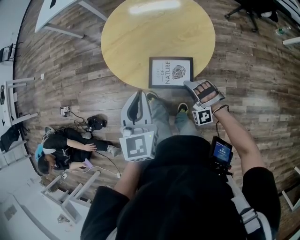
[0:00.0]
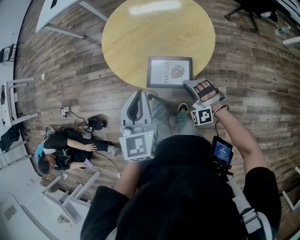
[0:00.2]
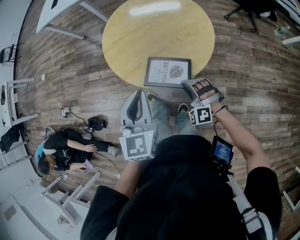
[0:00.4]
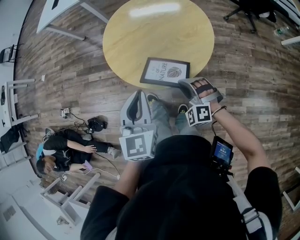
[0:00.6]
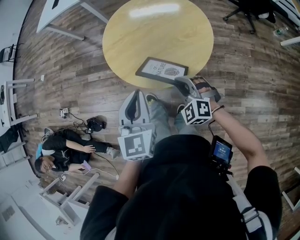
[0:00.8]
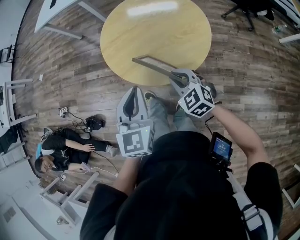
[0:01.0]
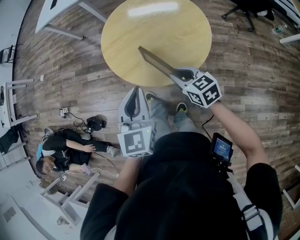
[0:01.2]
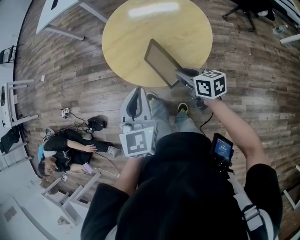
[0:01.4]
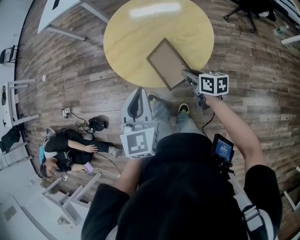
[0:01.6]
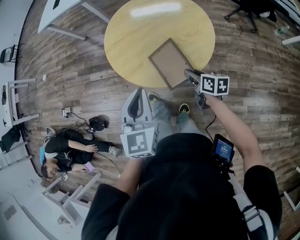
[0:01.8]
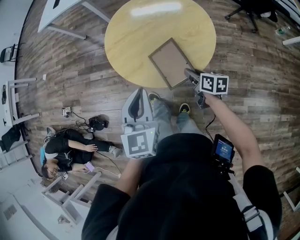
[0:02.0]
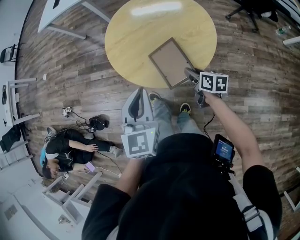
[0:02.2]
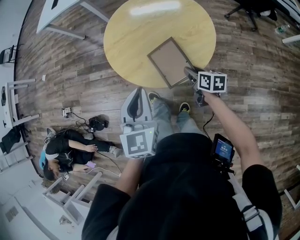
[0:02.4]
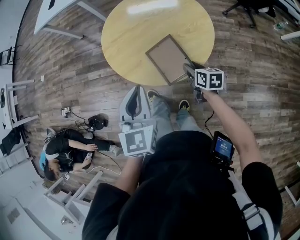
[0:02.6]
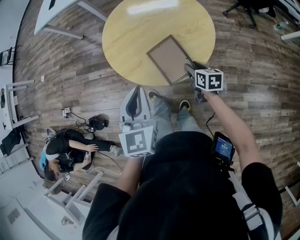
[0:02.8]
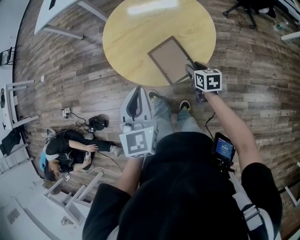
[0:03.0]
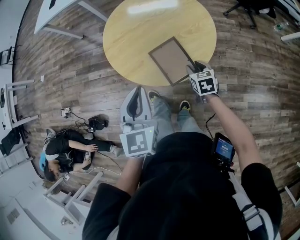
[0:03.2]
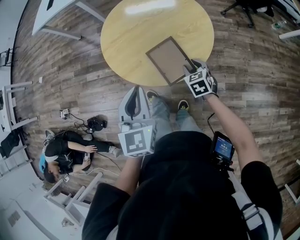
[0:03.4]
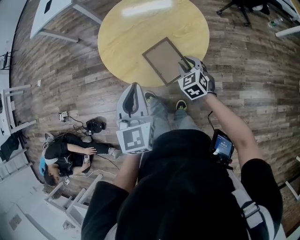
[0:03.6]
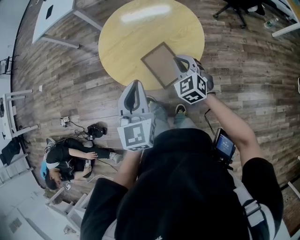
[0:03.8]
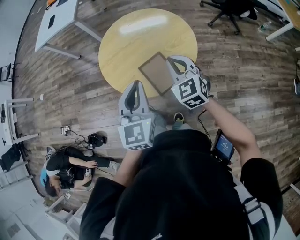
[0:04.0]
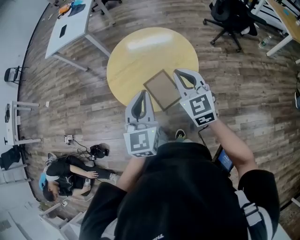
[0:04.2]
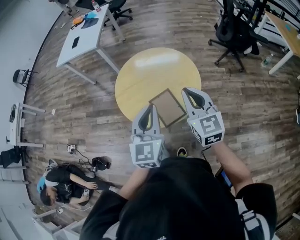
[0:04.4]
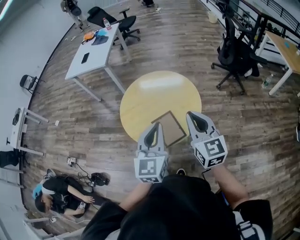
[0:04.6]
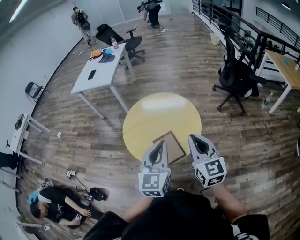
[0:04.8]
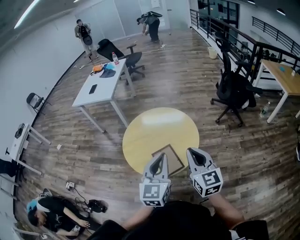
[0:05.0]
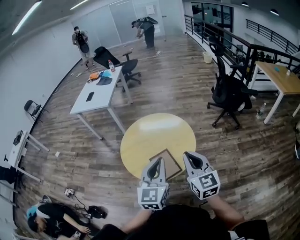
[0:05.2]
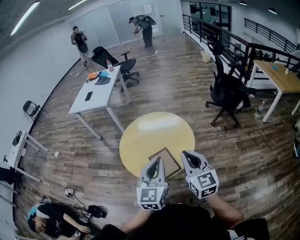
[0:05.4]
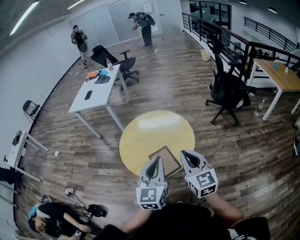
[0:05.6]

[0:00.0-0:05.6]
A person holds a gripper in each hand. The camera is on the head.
0.0 to 1.4 s: The right gripper goes approximately 10 cm upward and forward, and rotates around the line of its fingers by roughly 110 degrees, clockwise from behind.
1.4 to 2.8 s: The right gripper travels downward and to the right by approximately 10 cm, rotates roughly 20 degrees, and opens its fingers.
2.8 to 4.2 s: The left gripper goes roughly 10 cm upward and to the right. Meanwhile the right gripper travels upward by approximately 30 cm, rotates around the line of its fingers by approximately 40 degrees, counterclockwise from behind, and closes.
4.2 to 5.6 s: The right gripper moves backward and upward, about 10 cm. The left gripper shifts about 5 cm upward.

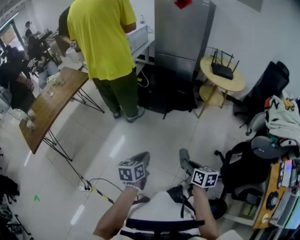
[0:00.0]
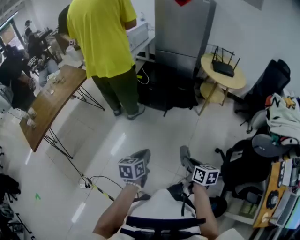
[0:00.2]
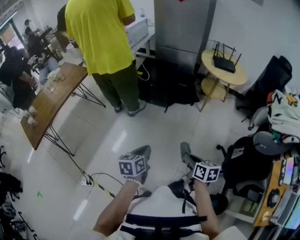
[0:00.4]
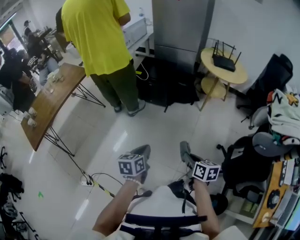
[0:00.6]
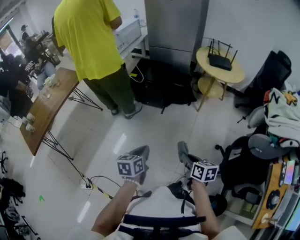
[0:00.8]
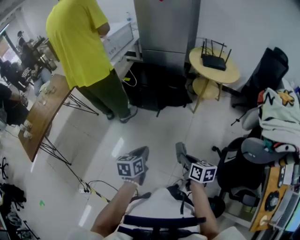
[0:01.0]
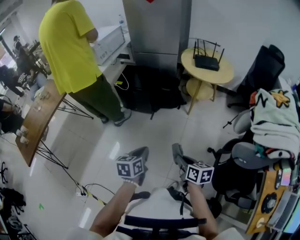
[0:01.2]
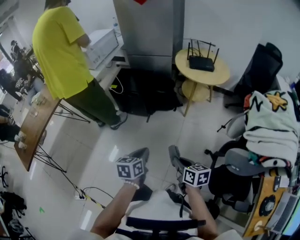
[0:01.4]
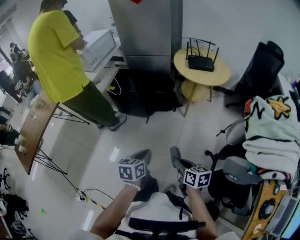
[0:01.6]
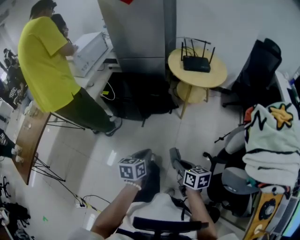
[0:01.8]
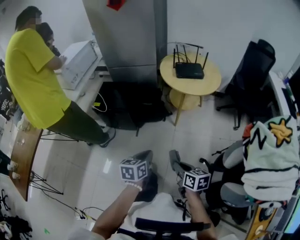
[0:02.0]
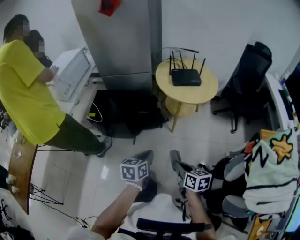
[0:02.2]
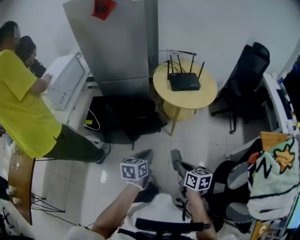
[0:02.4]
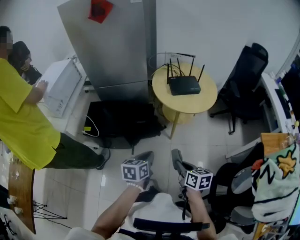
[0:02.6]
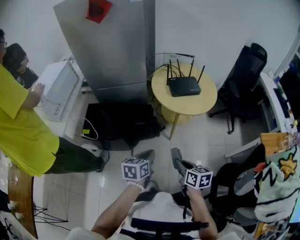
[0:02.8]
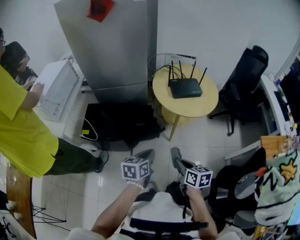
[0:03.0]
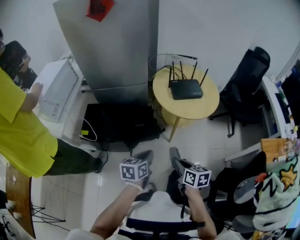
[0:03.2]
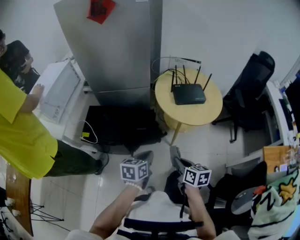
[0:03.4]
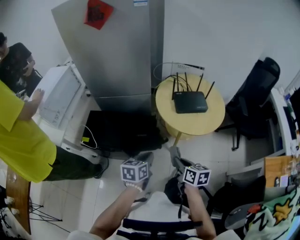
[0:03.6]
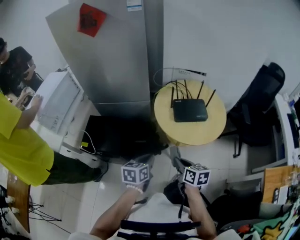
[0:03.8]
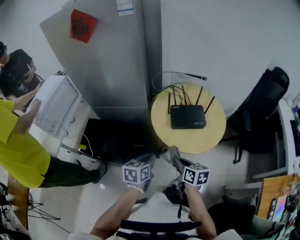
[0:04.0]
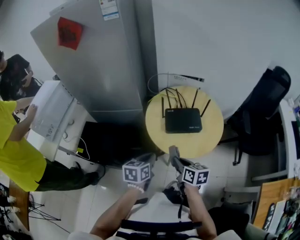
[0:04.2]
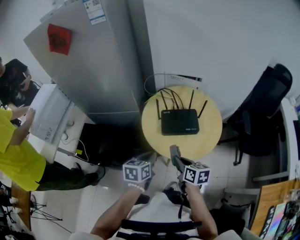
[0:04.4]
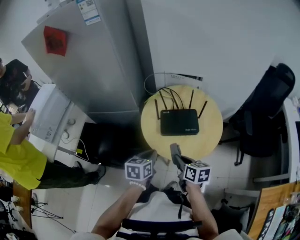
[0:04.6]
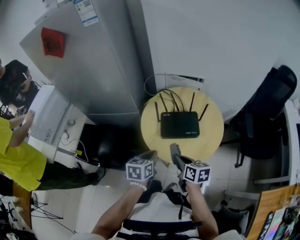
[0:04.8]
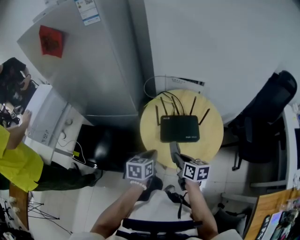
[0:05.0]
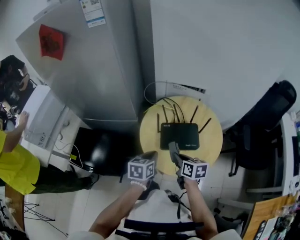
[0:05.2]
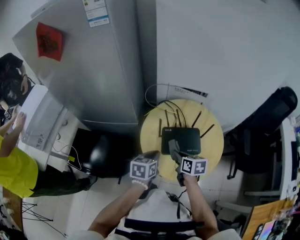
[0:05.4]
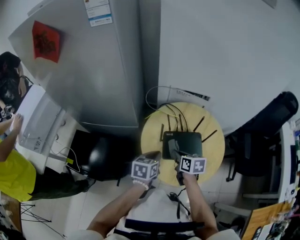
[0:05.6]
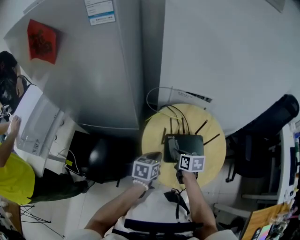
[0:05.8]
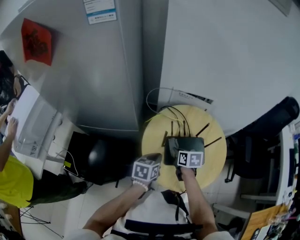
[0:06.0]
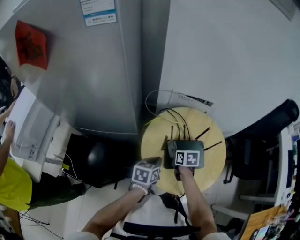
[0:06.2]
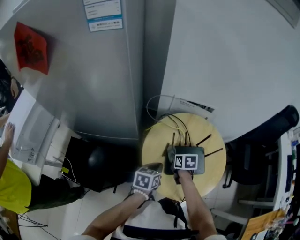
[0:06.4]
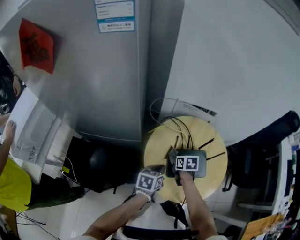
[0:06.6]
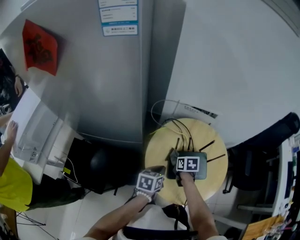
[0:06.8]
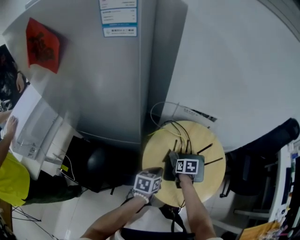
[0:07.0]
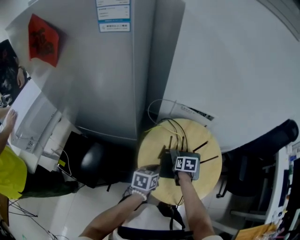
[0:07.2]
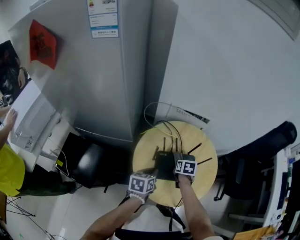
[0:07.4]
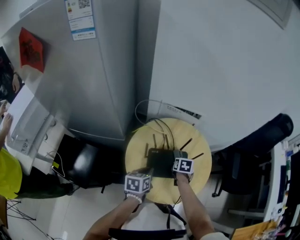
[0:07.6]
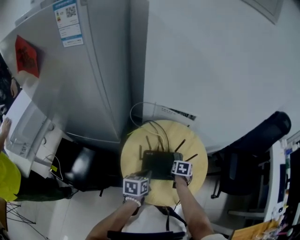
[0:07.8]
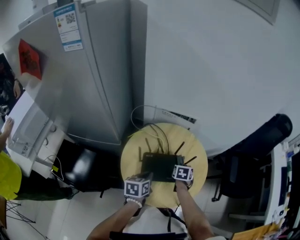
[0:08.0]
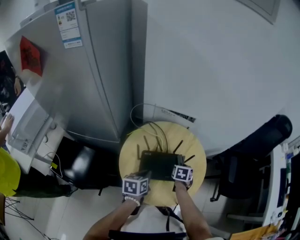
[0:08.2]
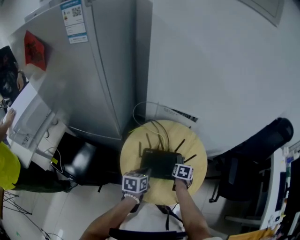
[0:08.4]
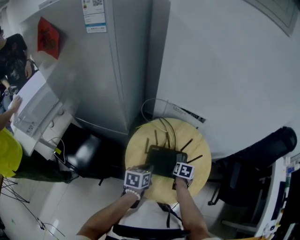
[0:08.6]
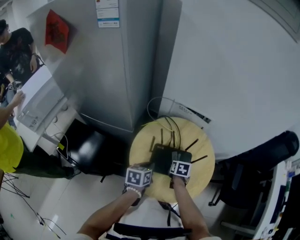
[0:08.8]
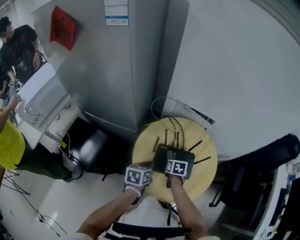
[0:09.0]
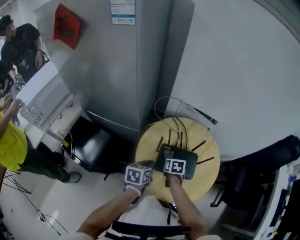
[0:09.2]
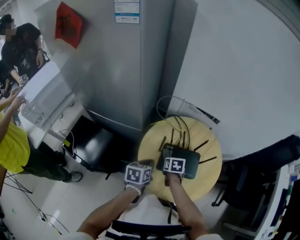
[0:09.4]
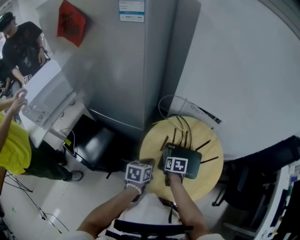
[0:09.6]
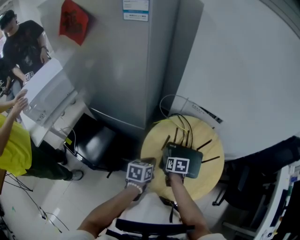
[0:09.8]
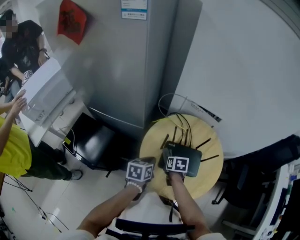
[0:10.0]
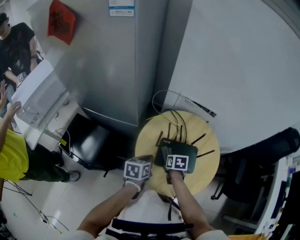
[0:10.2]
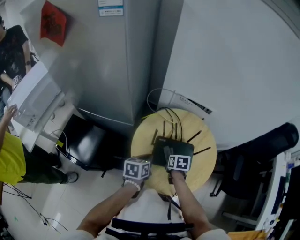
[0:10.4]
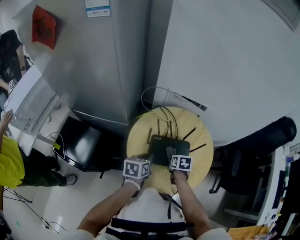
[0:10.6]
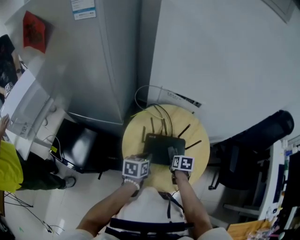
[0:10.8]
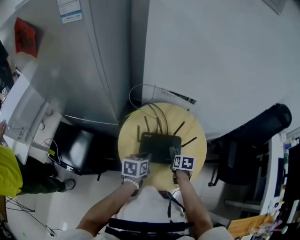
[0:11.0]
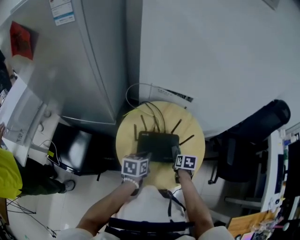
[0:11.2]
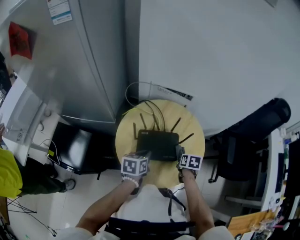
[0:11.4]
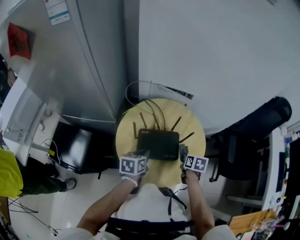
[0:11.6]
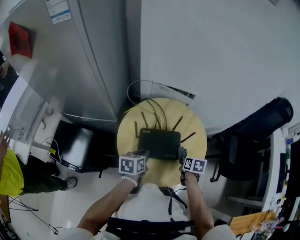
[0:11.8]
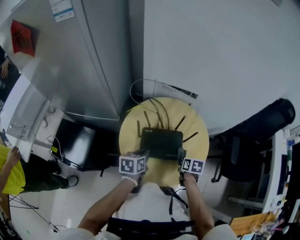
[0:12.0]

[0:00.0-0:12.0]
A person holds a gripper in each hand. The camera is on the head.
0.0 to 1.6 s: The grippers both shift to the right and forward by about 25 cm.
1.6 to 3.0 s: The grippers both shift forward by approximately 35 cm.
3.0 to 4.4 s: The two grippers go approximately 35 cm forward and to the right.
4.4 to 6.0 s: The grippers both shift forward by approximately 25 cm.
6.0 to 7.6 s: The left gripper shifts roughly 5 cm to the right, while the right gripper is displaced to the right by roughly 15 cm, and changes its angle by about 20 degrees.
7.6 to 9.0 s: The right gripper heads to the left and backward, covering about 10 cm.
9.0 to 10.4 s: The right gripper goes to the left and returns, some 10 cm each way.
10.4 to 12.0 s: The right gripper shifts about 15 cm to the right. The left gripper travels to the right by some 5 cm.

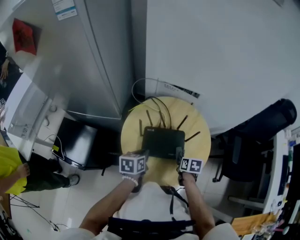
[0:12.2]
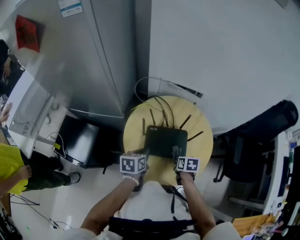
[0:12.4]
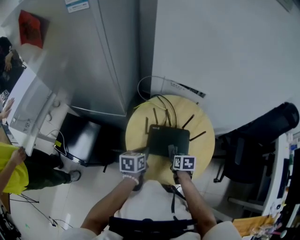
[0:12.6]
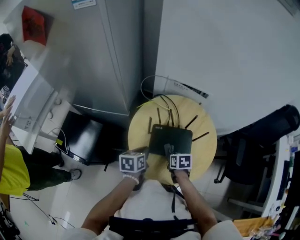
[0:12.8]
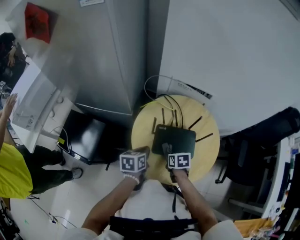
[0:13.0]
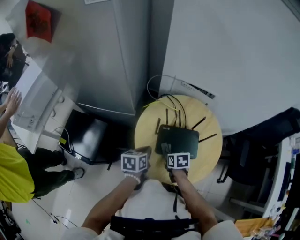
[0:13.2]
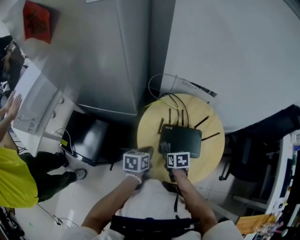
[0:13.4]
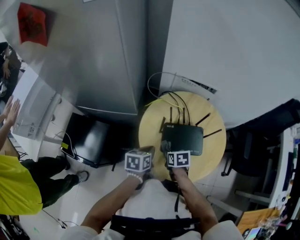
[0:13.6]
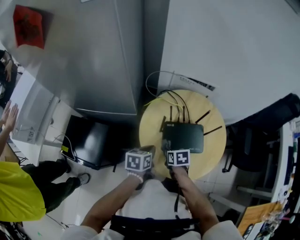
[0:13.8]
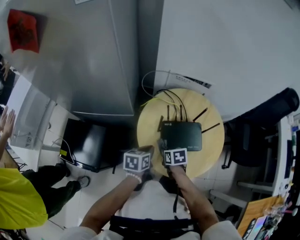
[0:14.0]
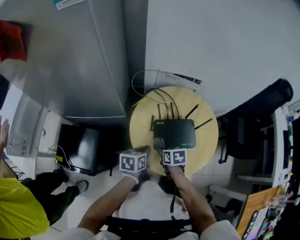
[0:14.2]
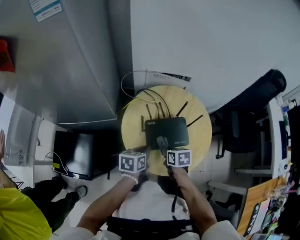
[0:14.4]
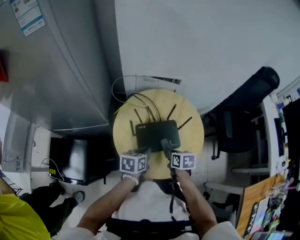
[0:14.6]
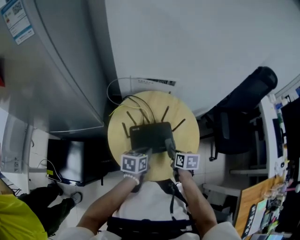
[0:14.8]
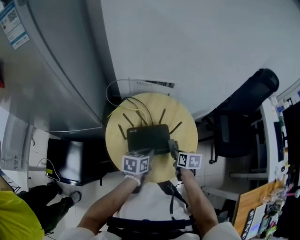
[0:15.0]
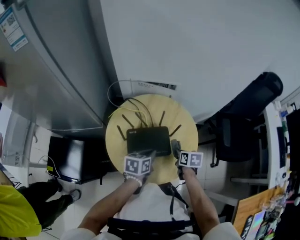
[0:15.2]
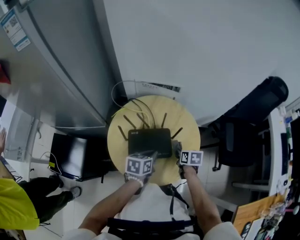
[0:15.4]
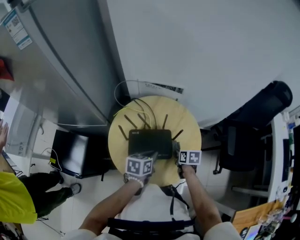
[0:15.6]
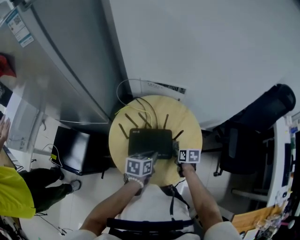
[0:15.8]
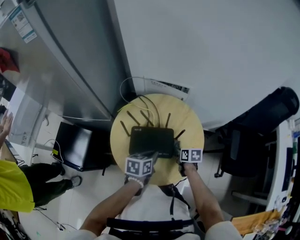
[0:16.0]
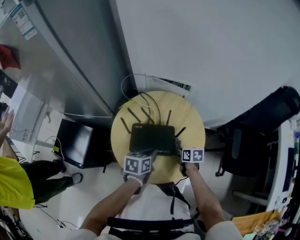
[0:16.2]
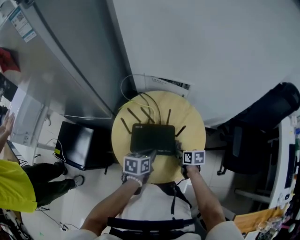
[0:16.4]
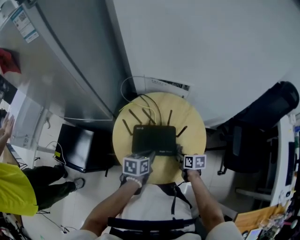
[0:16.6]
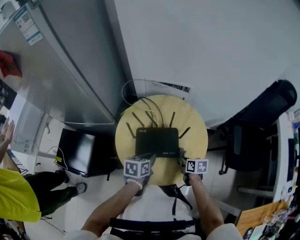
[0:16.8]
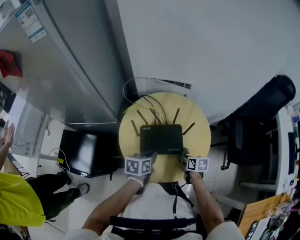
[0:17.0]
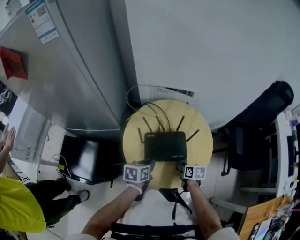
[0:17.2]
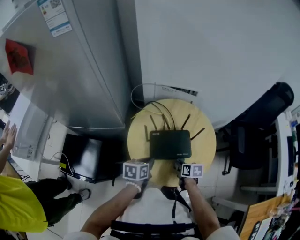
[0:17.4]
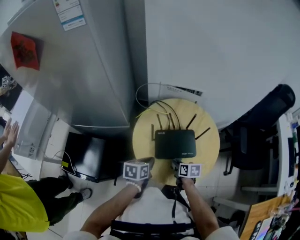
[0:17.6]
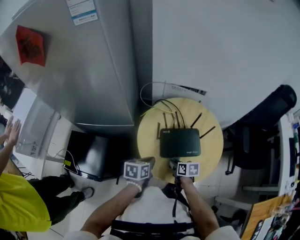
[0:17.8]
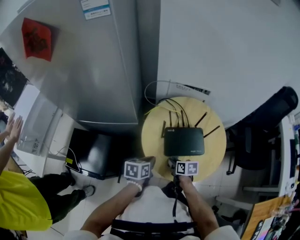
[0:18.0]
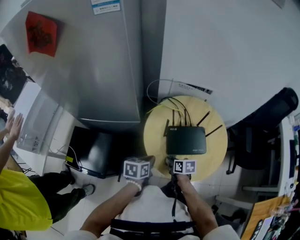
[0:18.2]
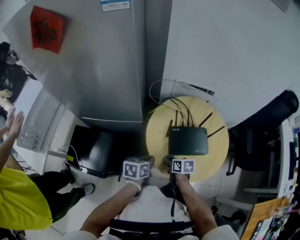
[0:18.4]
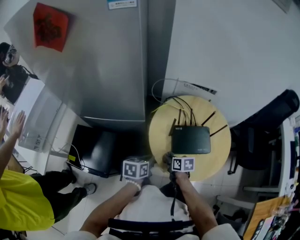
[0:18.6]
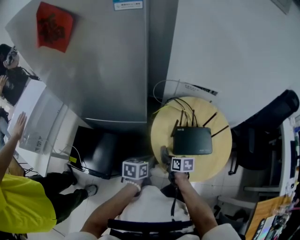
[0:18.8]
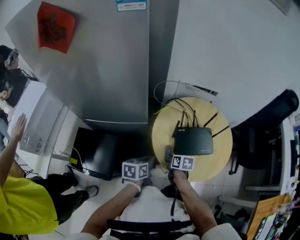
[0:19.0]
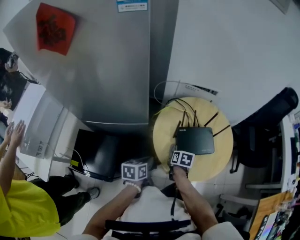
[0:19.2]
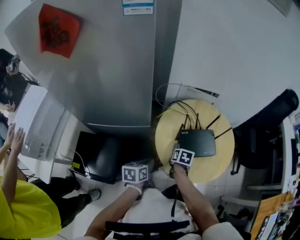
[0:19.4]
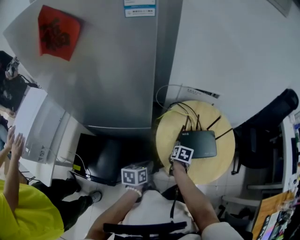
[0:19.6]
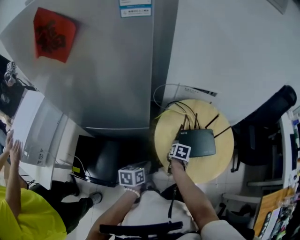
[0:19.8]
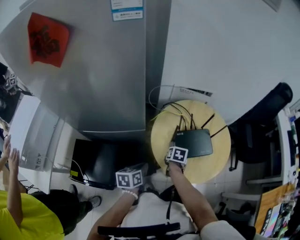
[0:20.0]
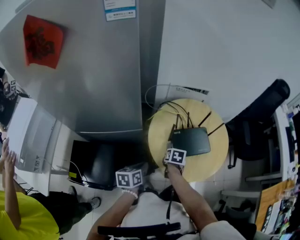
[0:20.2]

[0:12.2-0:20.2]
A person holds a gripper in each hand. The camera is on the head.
12.2 to 13.8 s: The left gripper moves to the left, some 10 cm, while the right gripper goes roughly 20 cm to the left.
13.8 to 15.4 s: The grippers both shift to the right by some 25 cm.
15.4 to 17.0 s: The right gripper changes place by approximately 5 cm. Meanwhile the left gripper shifts about 5 cm to the left.
17.0 to 18.6 s: Both grippers travel together to the left, some 25 cm.
18.6 to 20.2 s: The right gripper heads forward, covering some 5 cm, and turns by approximately 30 degrees, while the left gripper is displaced to the left by approximately 5 cm.
